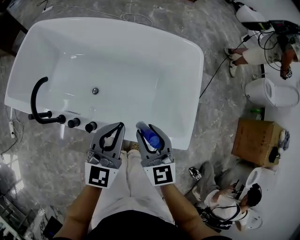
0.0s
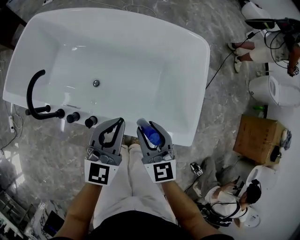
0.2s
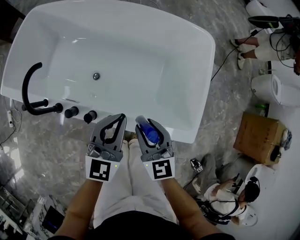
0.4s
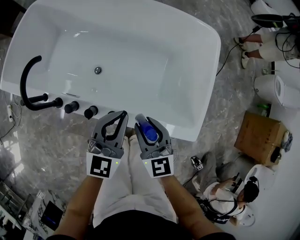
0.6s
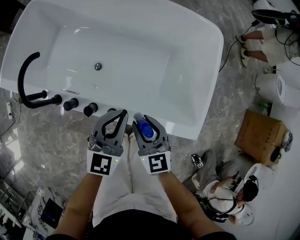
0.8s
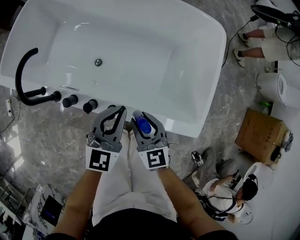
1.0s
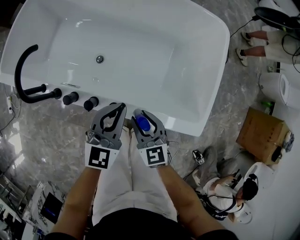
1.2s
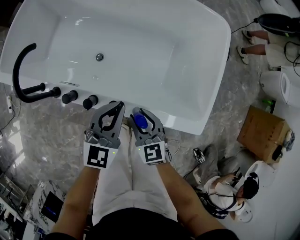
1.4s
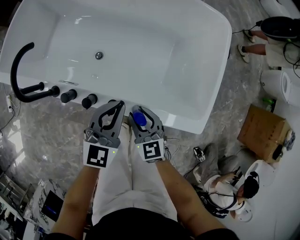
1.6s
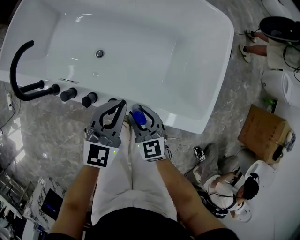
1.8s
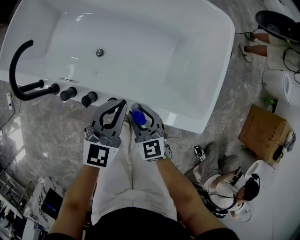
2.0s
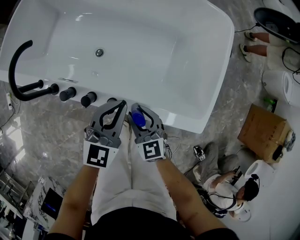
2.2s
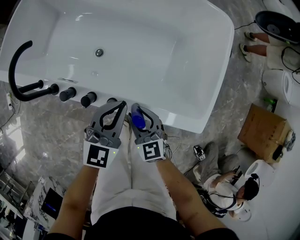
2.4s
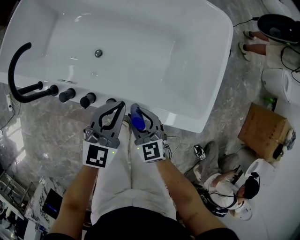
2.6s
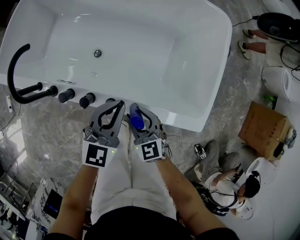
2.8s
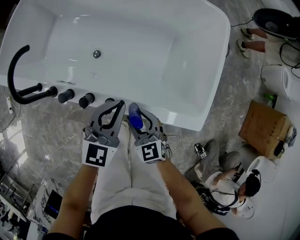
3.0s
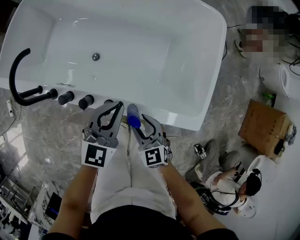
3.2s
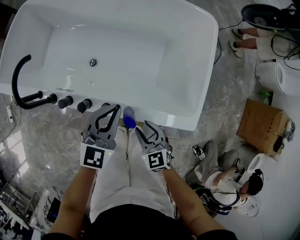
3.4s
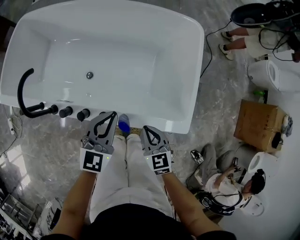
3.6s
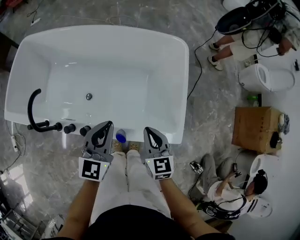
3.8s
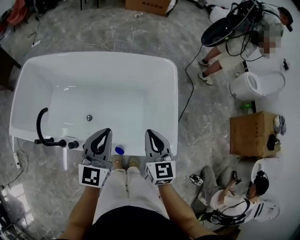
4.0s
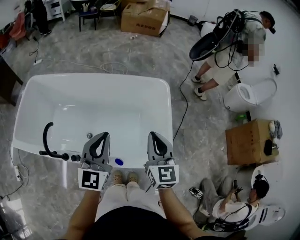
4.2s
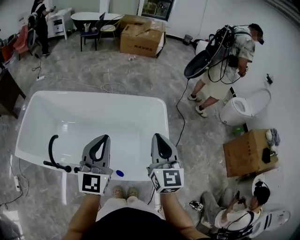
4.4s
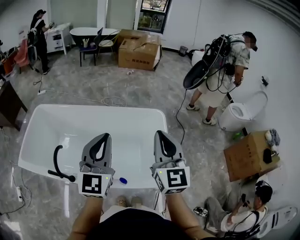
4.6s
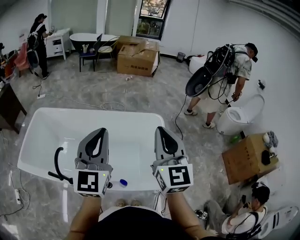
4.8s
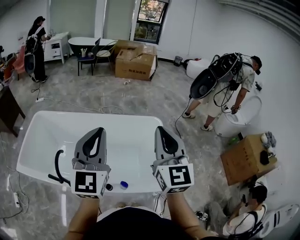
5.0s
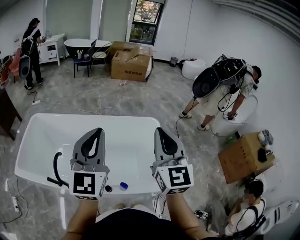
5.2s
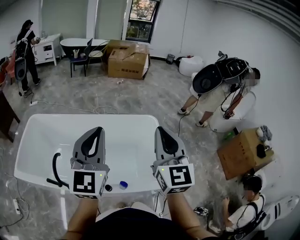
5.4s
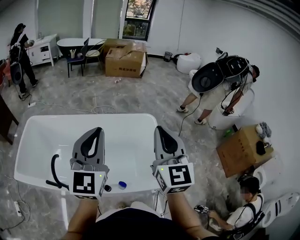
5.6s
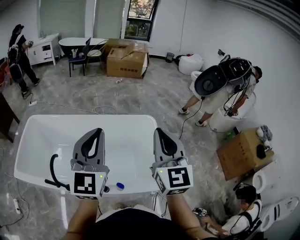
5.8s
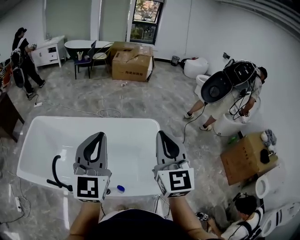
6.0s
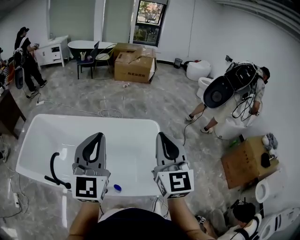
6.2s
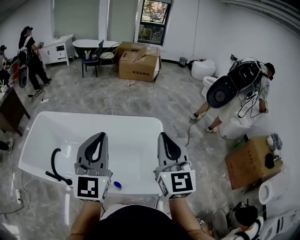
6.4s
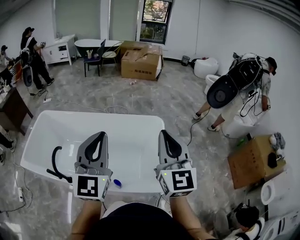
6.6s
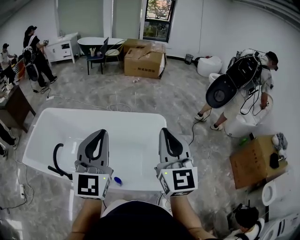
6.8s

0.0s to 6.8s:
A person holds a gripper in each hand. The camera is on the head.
0.0s to 1.4s: The two grippers go about 15 cm downward.
1.4s to 2.8s: There are only small adjustments of the grippers.
2.8s to 4.0s: The left gripper moves upward, approximately 20 cm, while the right gripper is displaced upward and to the right by roughly 30 cm, turns by roughly 40 degrees, and closes.
4.0s to 5.4s: Both grippers move upward, roughly 30 cm. The right gripper turns by roughly 30 degrees.
5.4s to 6.8s: Both grippers travel together to the right, approximately 10 cm.

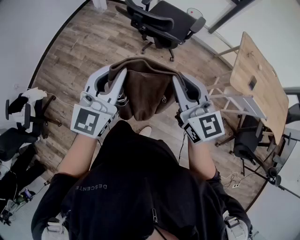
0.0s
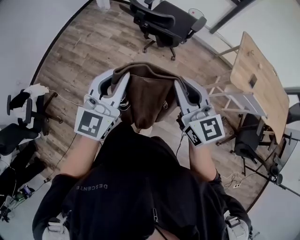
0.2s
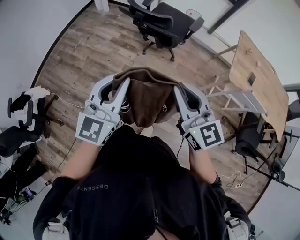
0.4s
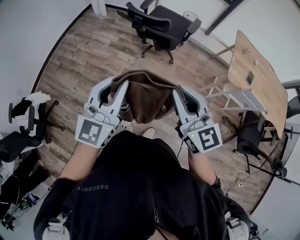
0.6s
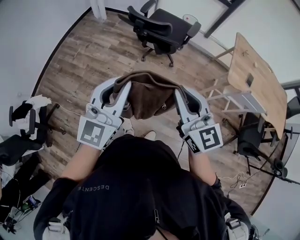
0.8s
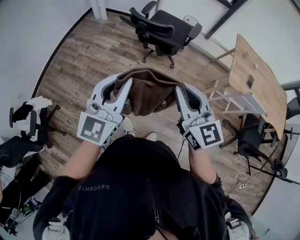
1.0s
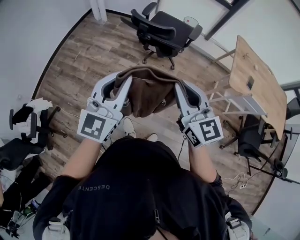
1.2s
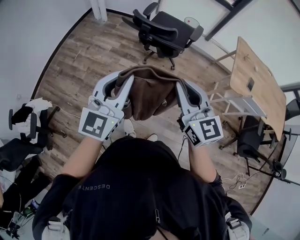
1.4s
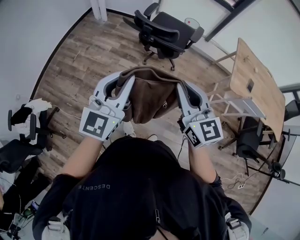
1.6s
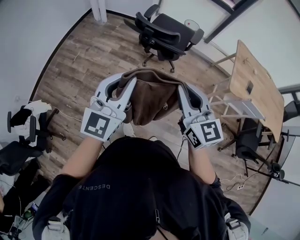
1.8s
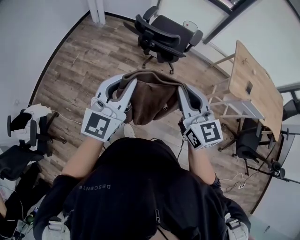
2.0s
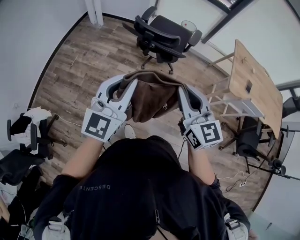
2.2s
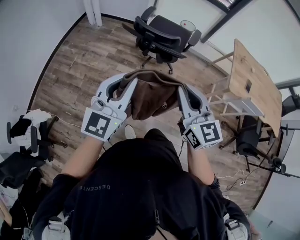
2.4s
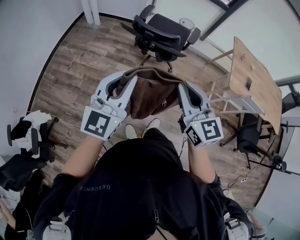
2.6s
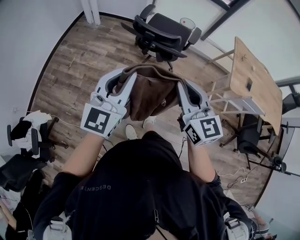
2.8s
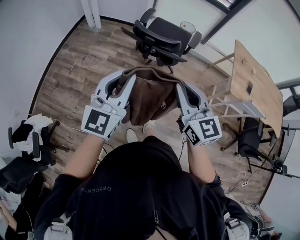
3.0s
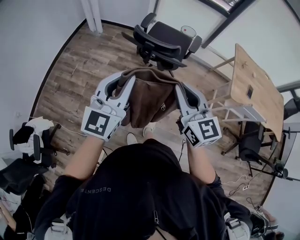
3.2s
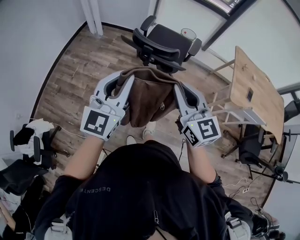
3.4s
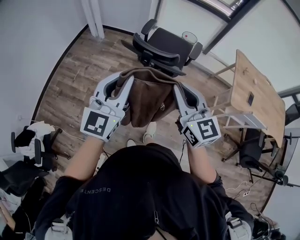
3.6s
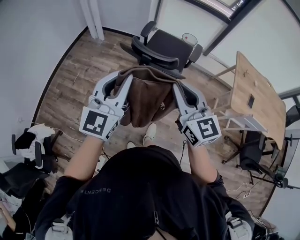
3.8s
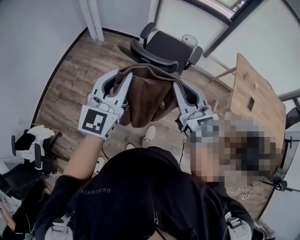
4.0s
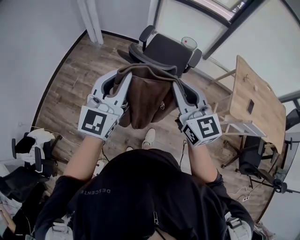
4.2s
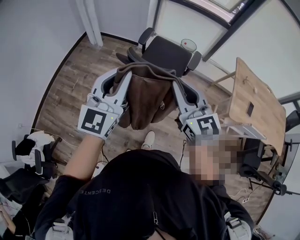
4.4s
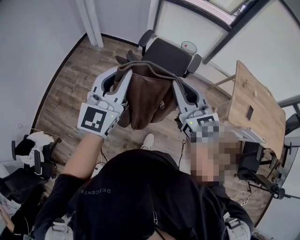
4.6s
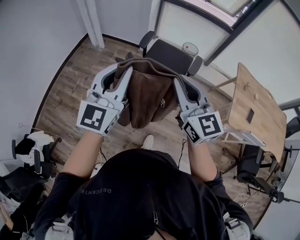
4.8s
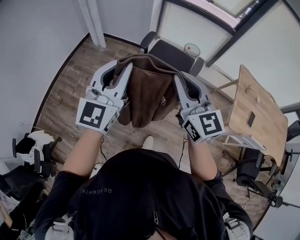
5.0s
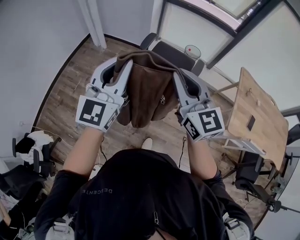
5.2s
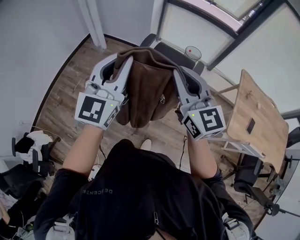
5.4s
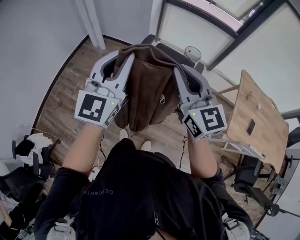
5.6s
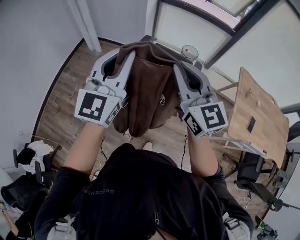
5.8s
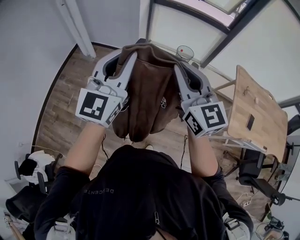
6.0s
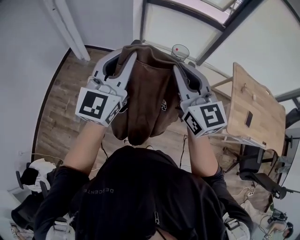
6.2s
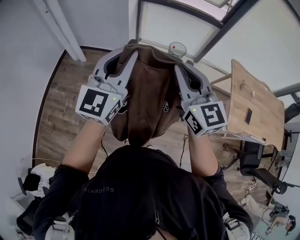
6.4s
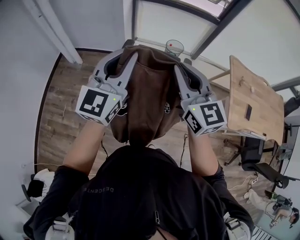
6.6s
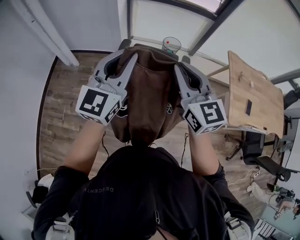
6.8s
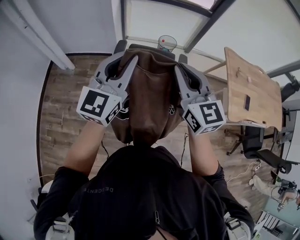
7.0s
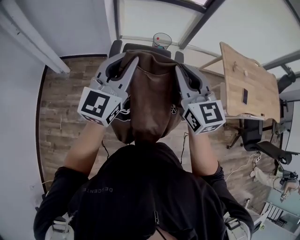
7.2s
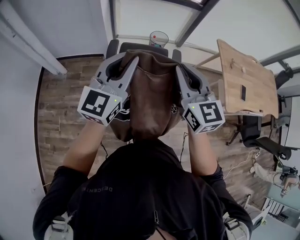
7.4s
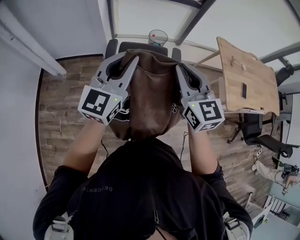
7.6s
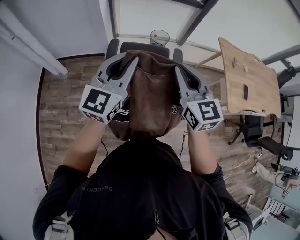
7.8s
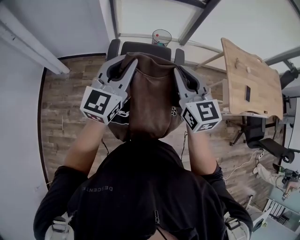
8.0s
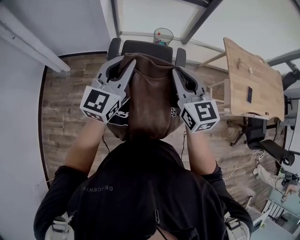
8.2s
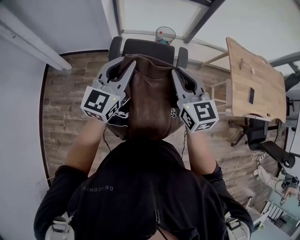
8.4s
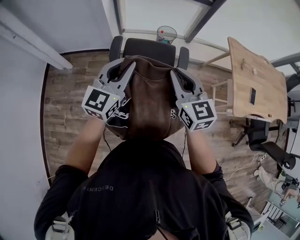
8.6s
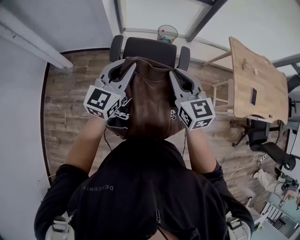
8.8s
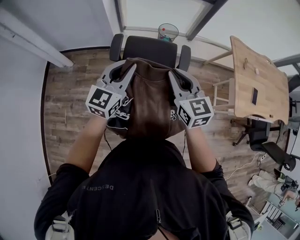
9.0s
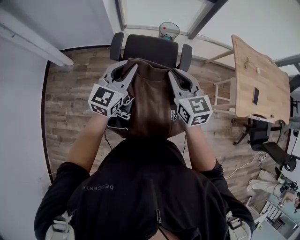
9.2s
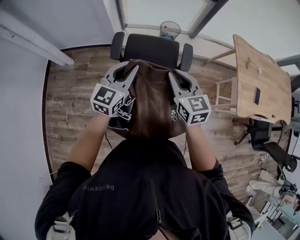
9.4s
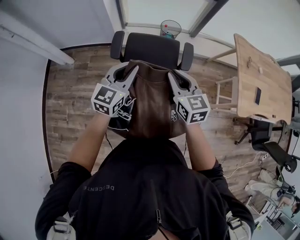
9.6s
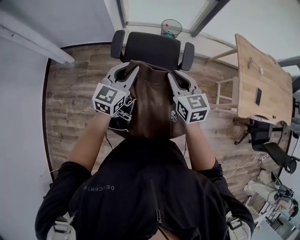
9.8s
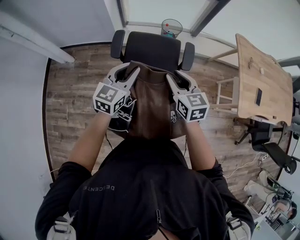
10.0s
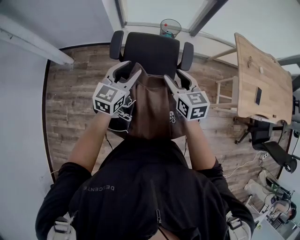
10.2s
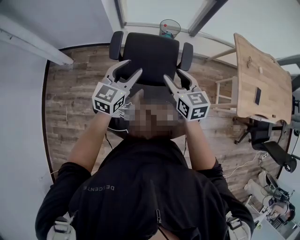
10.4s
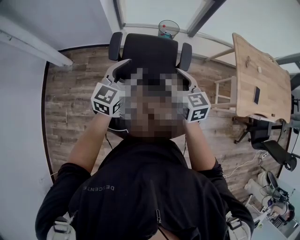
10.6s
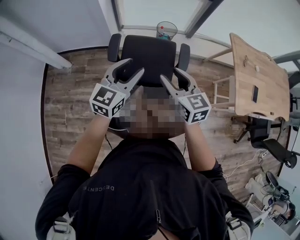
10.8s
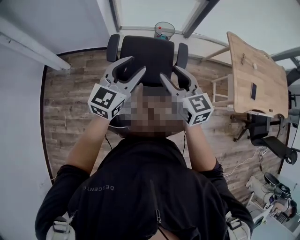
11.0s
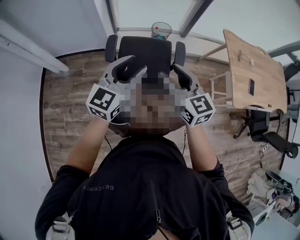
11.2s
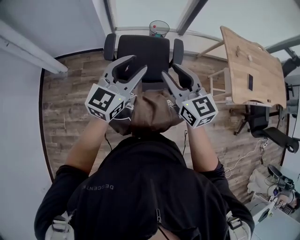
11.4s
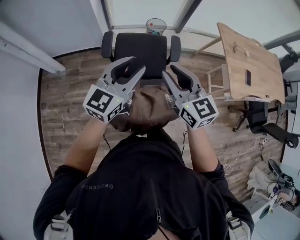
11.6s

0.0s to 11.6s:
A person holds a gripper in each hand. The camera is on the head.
0.0s to 1.4s: The grippers both shift to the left by roughly 5 cm. The left gripper reaches approximately 10 cm backward, then returns. Meanwhile the right gripper goes backward and returns, about 10 cm each way.
1.4s to 2.8s: The two grippers go some 10 cm forward and to the left.
2.8s to 4.4s: Both grippers travel together forward, about 15 cm.
4.4s to 5.8s: The two grippers go roughly 15 cm forward.
5.8s to 7.2s: Both grippers move forward, approximately 15 cm. The left gripper swivels about 30 degrees. Meanwhile the right gripper rotates some 30 degrees.
7.2s to 8.8s: The grippers both shift downward and forward by about 15 cm.
8.8s to 10.2s: Both grippers move downward, about 10 cm. The left gripper opens its fingers, while the right gripper opens.
10.2s to 11.6s: Both grippers travel together upward and backward, approximately 15 cm. The right gripper closes its fingers.

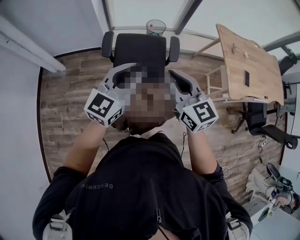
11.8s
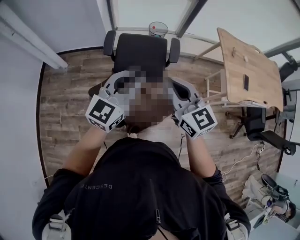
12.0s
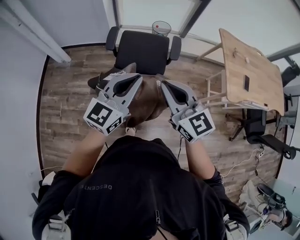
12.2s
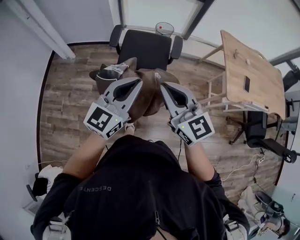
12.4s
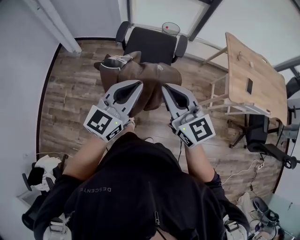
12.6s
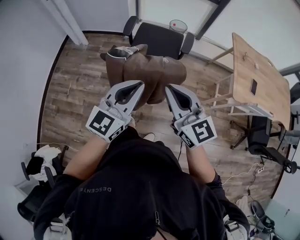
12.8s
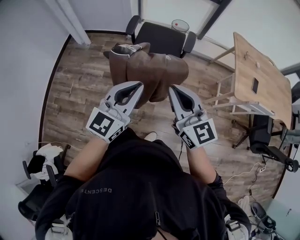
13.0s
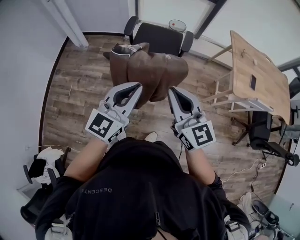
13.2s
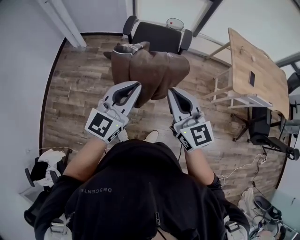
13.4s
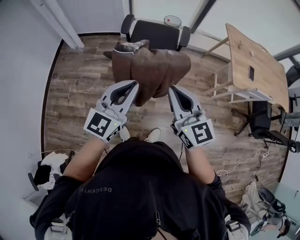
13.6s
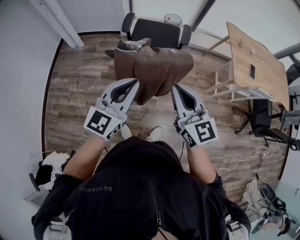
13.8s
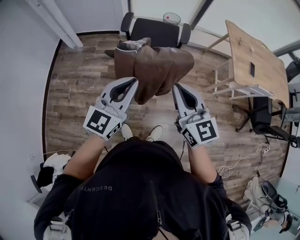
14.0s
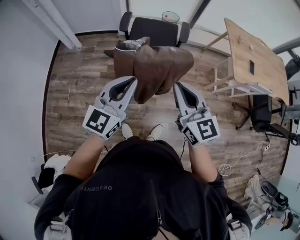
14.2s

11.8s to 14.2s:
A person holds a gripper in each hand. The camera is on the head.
11.8s to 13.0s: Both grippers travel together backward, about 30 cm.
13.0s to 14.2s: The left gripper shifts approximately 10 cm to the left.

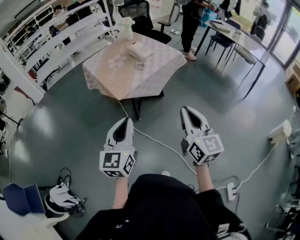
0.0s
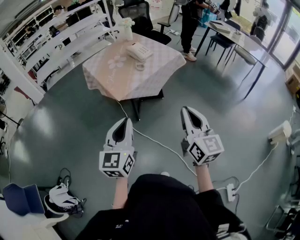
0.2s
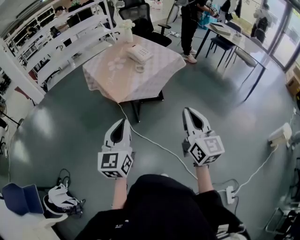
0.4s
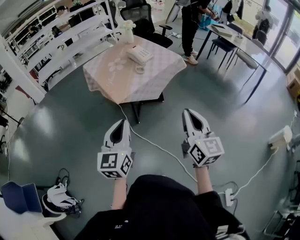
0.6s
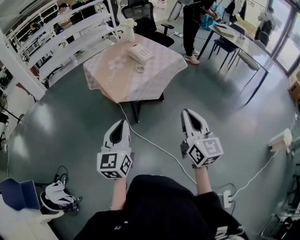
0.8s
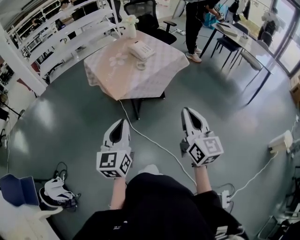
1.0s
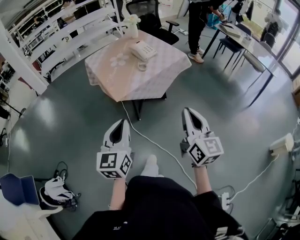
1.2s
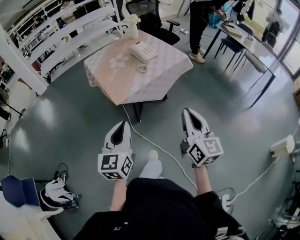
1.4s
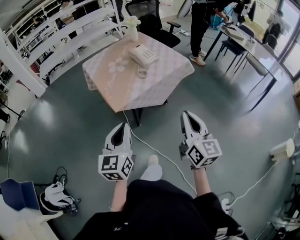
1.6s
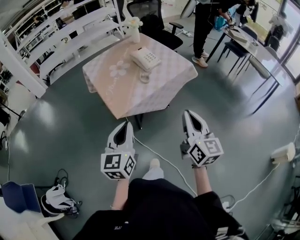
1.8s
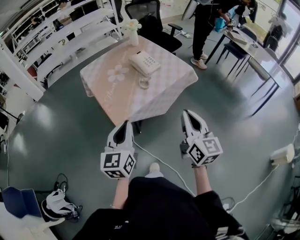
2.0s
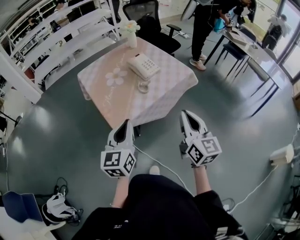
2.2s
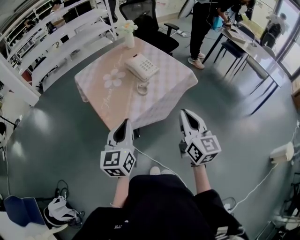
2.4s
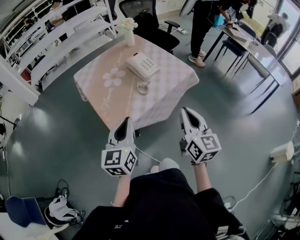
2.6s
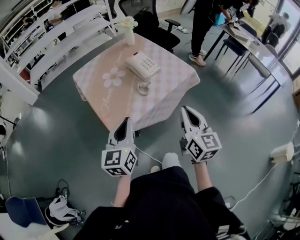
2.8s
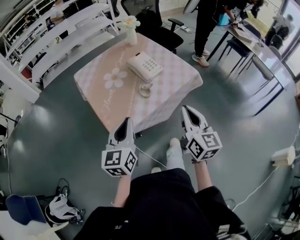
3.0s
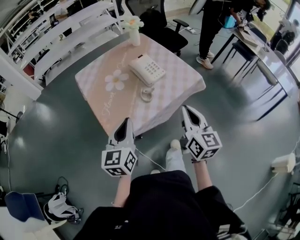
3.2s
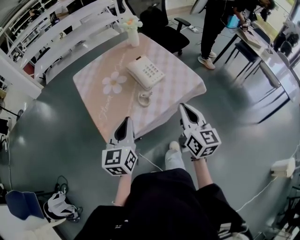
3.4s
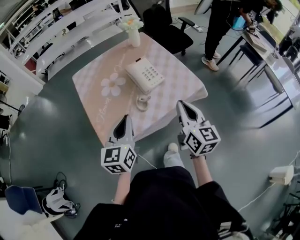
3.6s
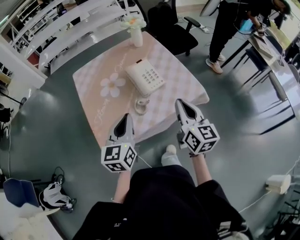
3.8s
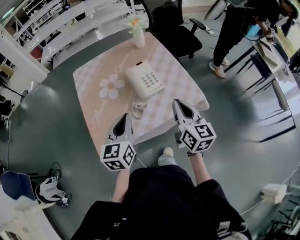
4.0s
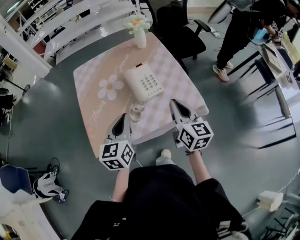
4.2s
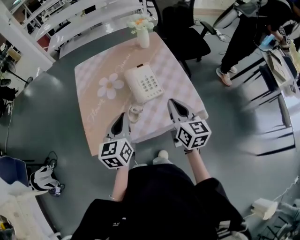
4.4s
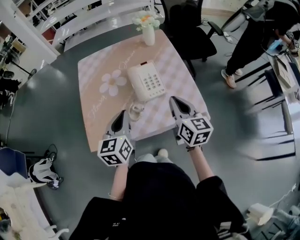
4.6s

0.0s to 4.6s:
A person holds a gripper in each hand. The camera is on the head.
0.0s to 1.6s: The grippers both shift forward by some 10 cm.
1.6s to 3.0s: Both grippers travel together forward, some 25 cm.
3.0s to 4.6s: The left gripper moves roughly 25 cm, and turns by roughly 30 degrees; the right gripper ends up some 30 cm from where it was, and turns by about 30 degrees.
